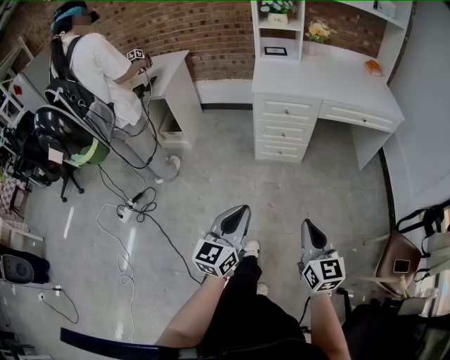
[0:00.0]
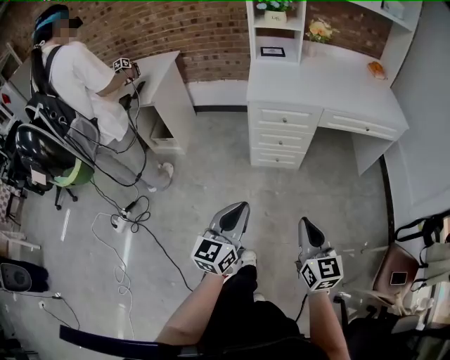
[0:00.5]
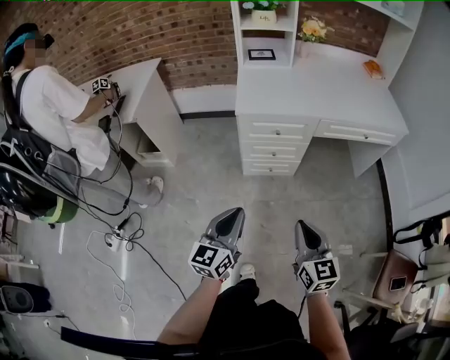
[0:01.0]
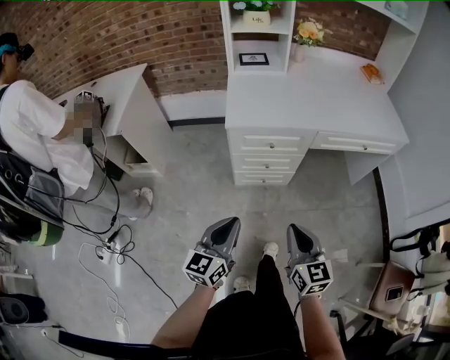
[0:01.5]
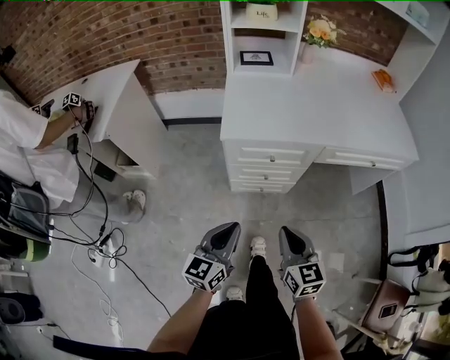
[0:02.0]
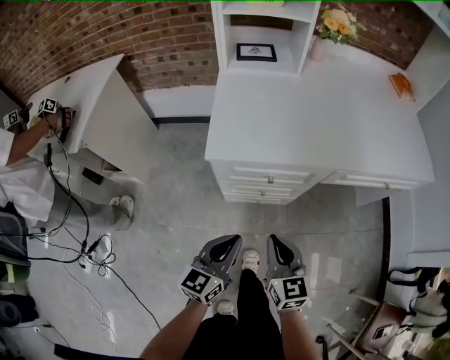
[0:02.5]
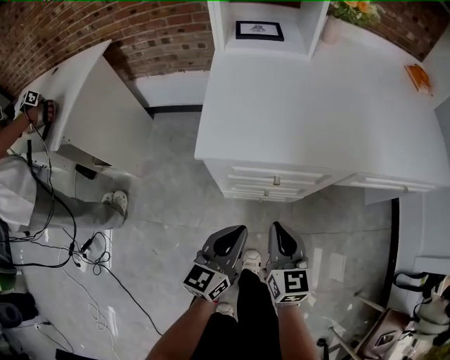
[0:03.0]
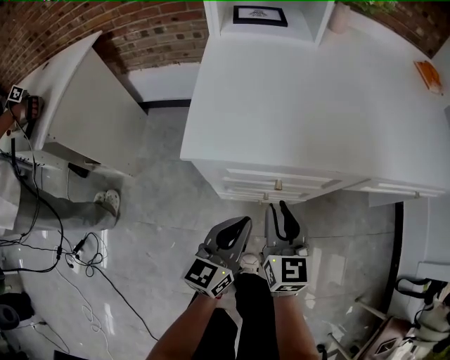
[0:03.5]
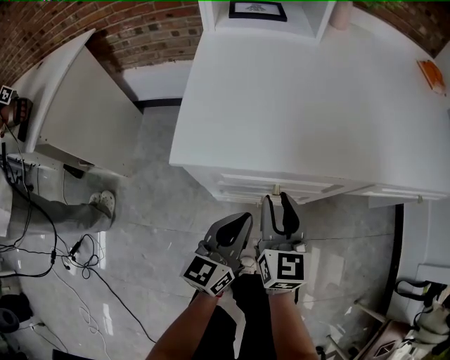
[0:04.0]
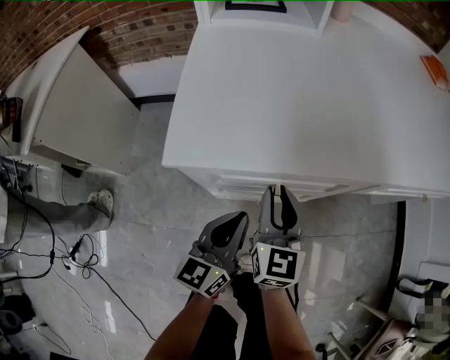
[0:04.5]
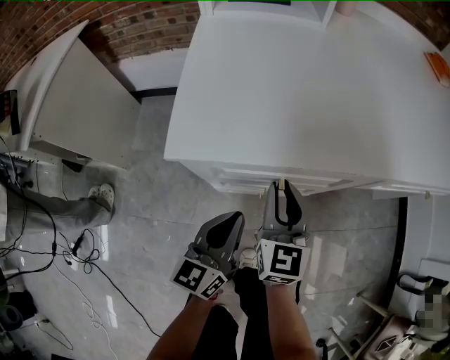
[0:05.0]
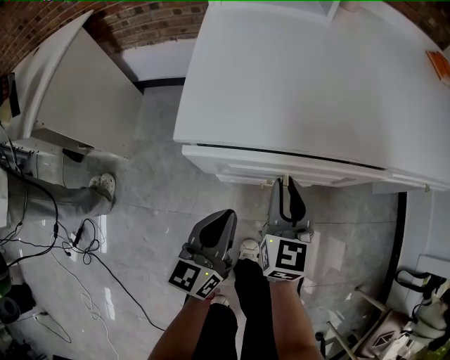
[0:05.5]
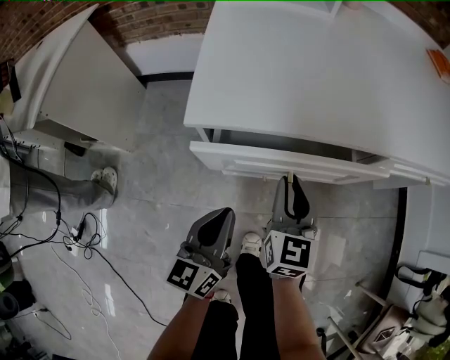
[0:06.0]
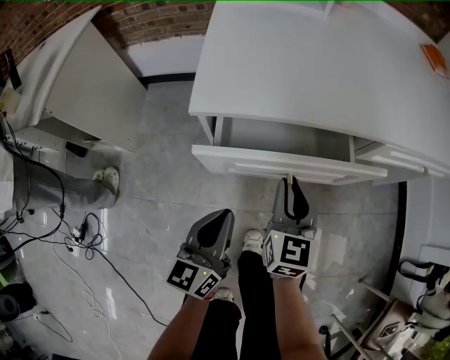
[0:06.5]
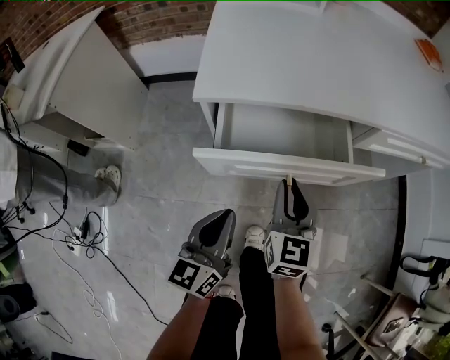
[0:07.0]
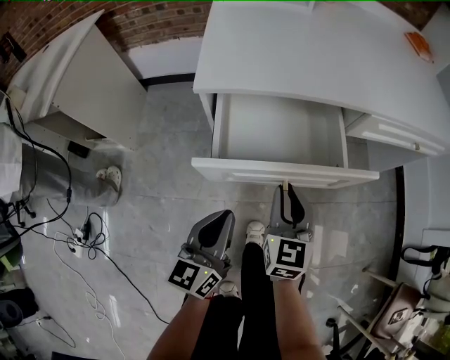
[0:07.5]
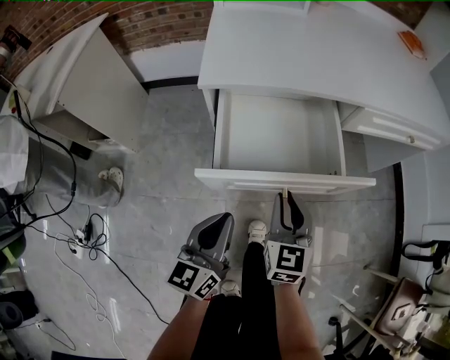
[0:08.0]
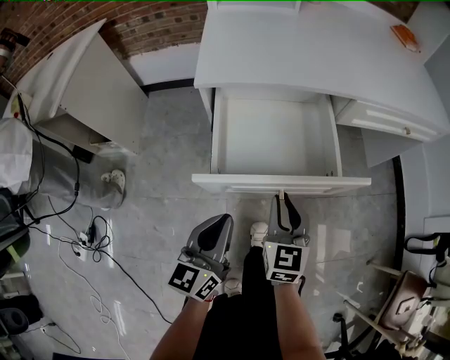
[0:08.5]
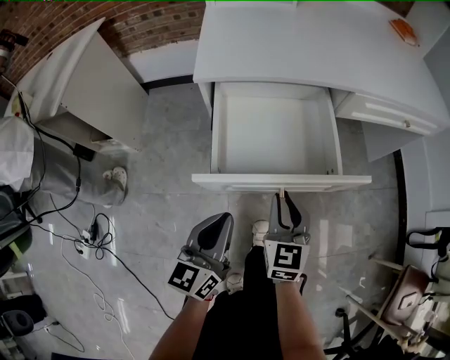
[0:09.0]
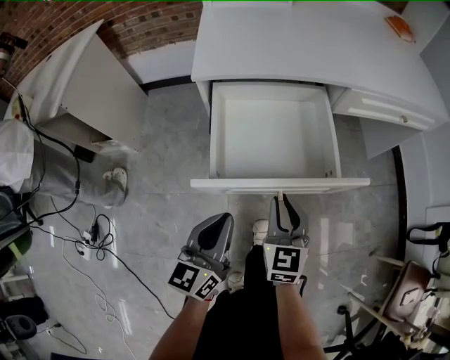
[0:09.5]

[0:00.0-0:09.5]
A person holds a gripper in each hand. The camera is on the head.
0:00.0 to 0:02.0: The two grippers go roughly 40 cm forward.
0:02.0 to 0:04.0: Both grippers travel together forward and downward, some 30 cm. The right gripper opens up.
0:04.0 to 0:05.5: The left gripper moves roughly 5 cm.
0:05.5 to 0:07.5: The two grippers go some 10 cm backward.
0:07.5 to 0:09.5: Both grippers move backward, about 10 cm.

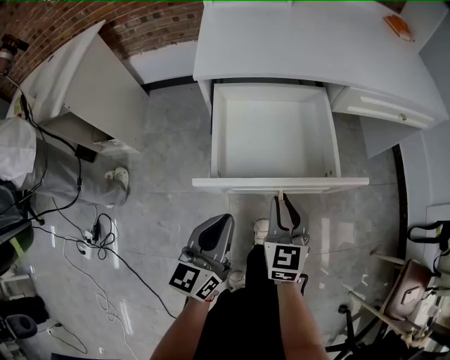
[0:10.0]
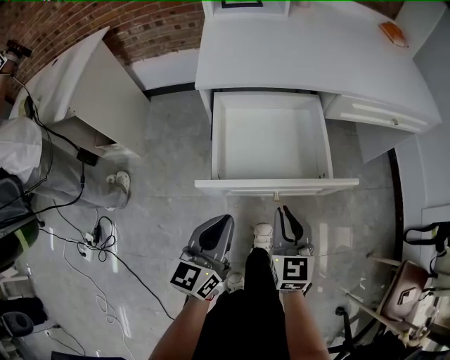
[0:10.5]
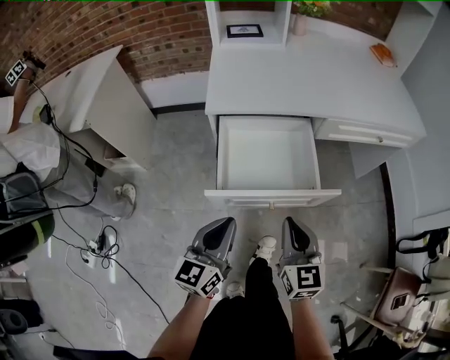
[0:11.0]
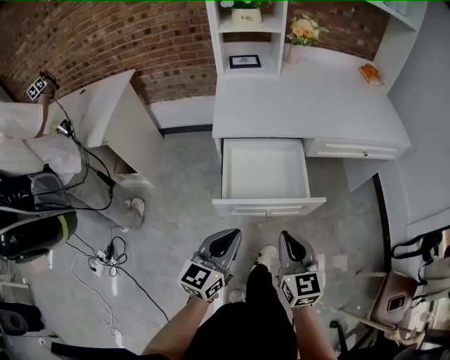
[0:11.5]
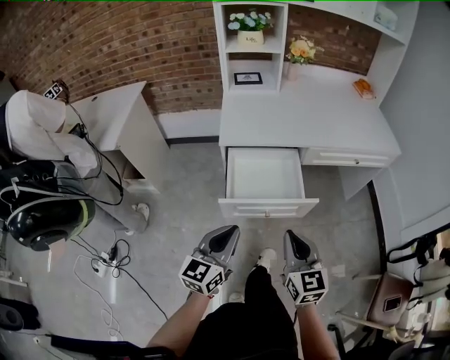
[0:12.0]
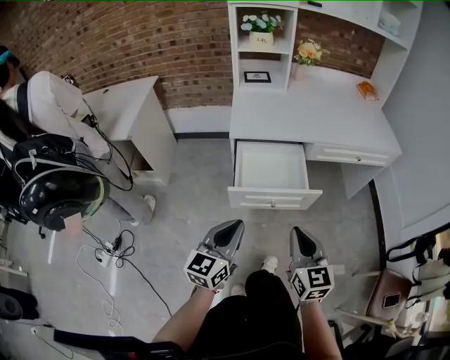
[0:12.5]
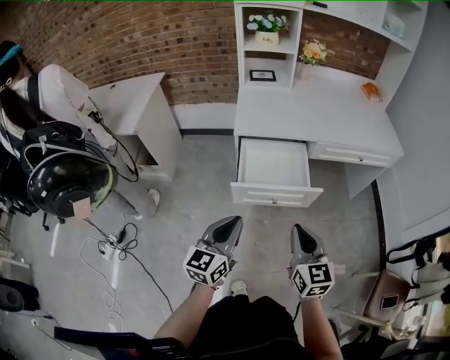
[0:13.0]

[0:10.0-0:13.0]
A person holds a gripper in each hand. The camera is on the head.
0:10.0 to 0:11.5: The right gripper moves upward and backward, some 20 cm; the left gripper goes about 15 cm upward.
0:11.5 to 0:13.0: The grippers both shift upward and backward by approximately 10 cm.

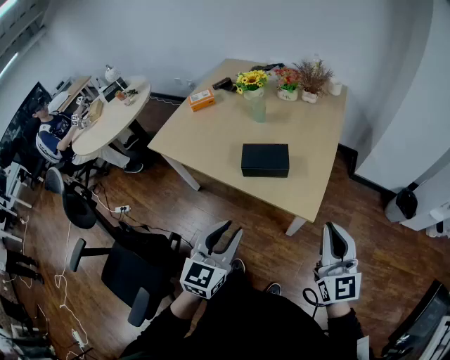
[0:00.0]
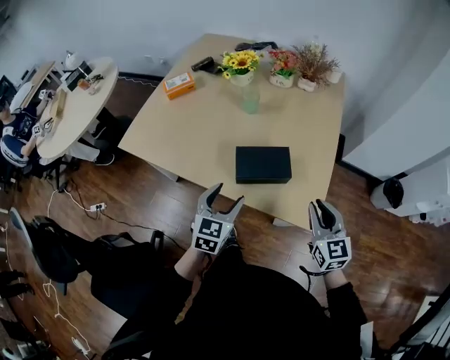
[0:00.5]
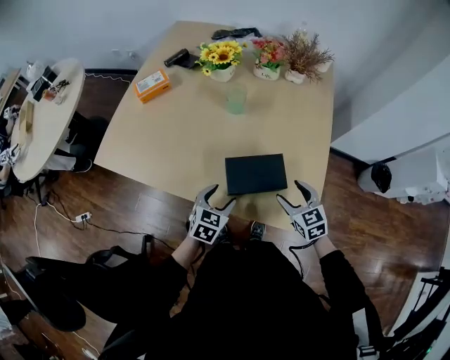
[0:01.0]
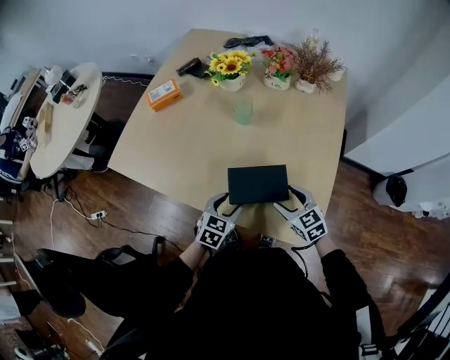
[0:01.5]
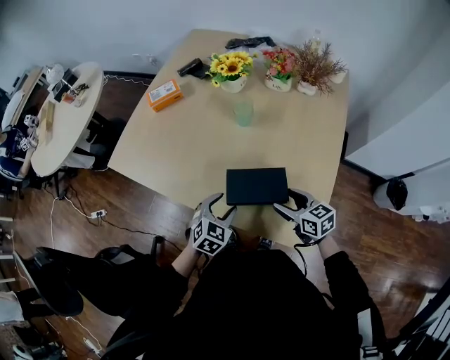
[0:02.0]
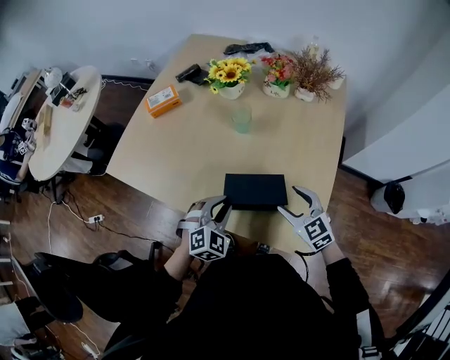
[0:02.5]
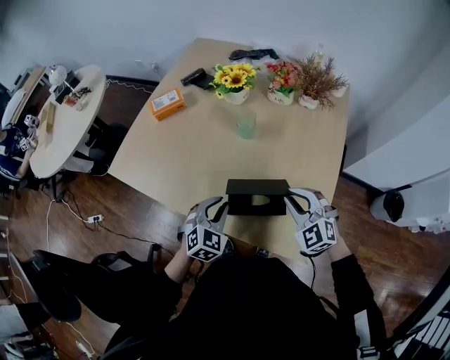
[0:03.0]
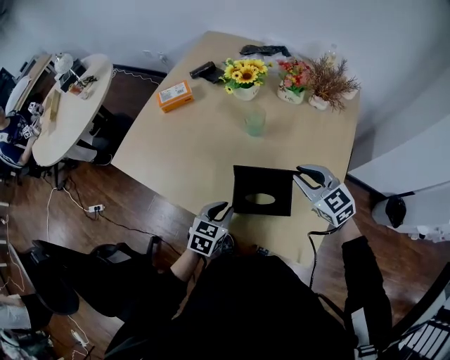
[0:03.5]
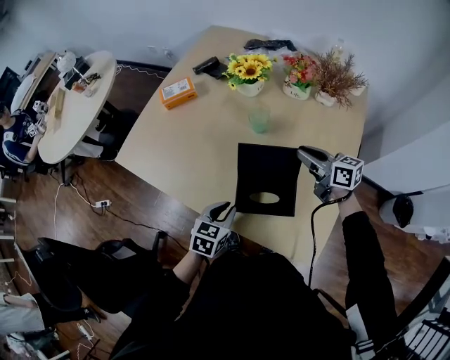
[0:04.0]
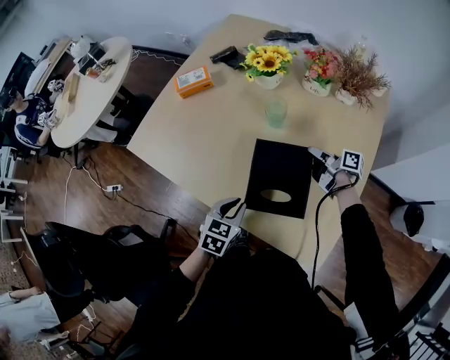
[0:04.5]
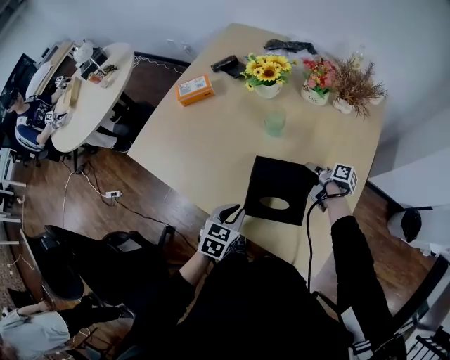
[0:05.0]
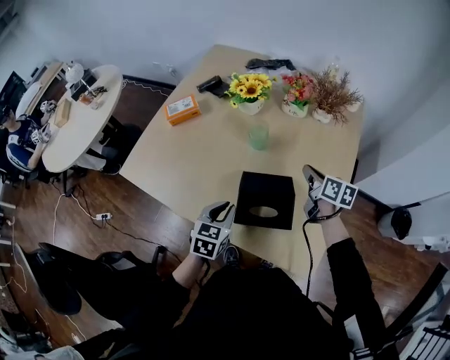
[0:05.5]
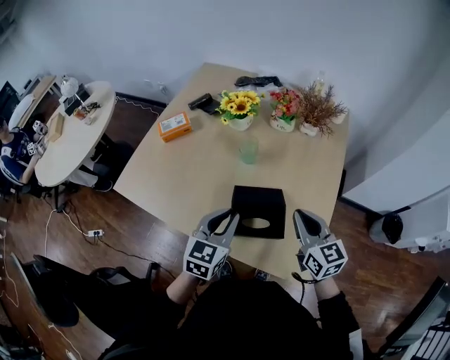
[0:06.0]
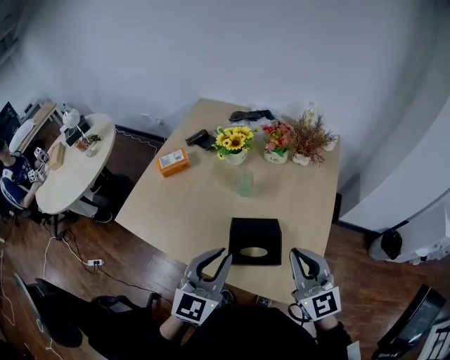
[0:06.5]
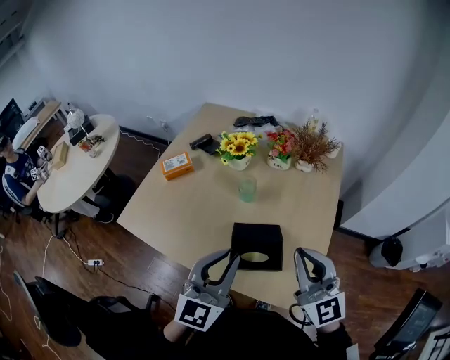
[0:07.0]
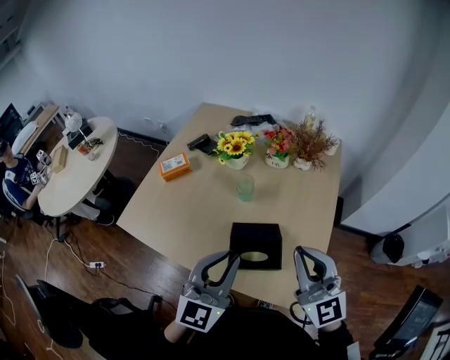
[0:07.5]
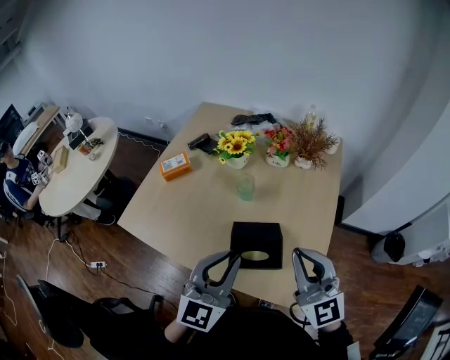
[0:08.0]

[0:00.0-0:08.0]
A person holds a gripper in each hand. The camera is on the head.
0:00.0 to 0:02.0: Both grippers travel together forward and downward, some 40 cm. The left gripper rotates approximately 30 degrees, and opens up. Meanwhile the right gripper tips its fingers downward by some 30 degrees, and opens.
0:02.0 to 0:04.0: The left gripper rotates about 30 degrees, and closes its fingers. The right gripper goes approximately 20 cm forward and upward, and closes.
0:04.0 to 0:06.0: The left gripper heads upward, covering approximately 15 cm, and swivels approximately 20 degrees; the right gripper heads backward, covering roughly 15 cm, reaches roughly 15 cm downward, then returns, and rotates about 30 degrees.
0:06.0 to 0:08.0: The grippers both shift upward by roughly 15 cm. The left gripper changes its angle by some 30 degrees. The right gripper changes its angle by some 30 degrees.

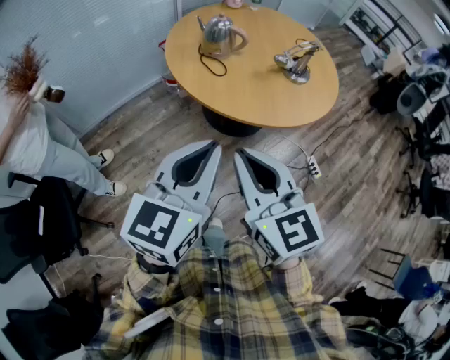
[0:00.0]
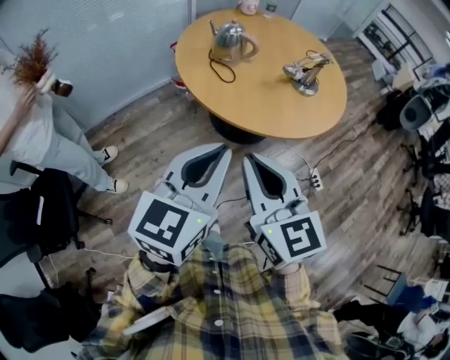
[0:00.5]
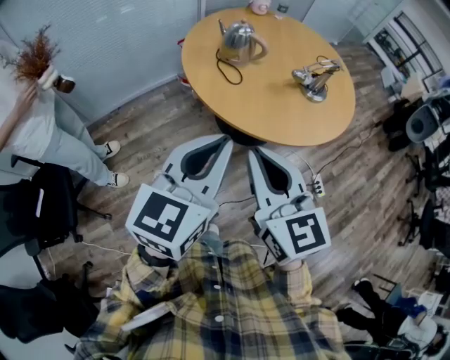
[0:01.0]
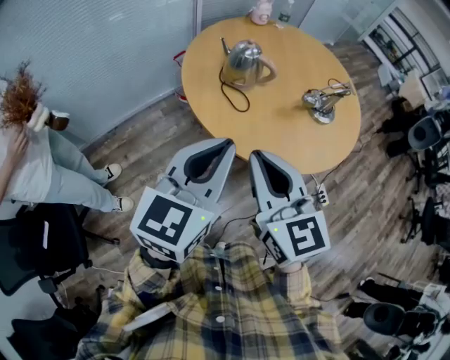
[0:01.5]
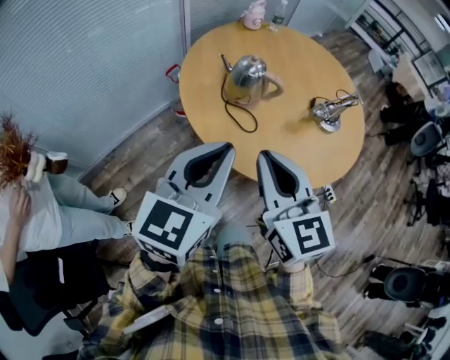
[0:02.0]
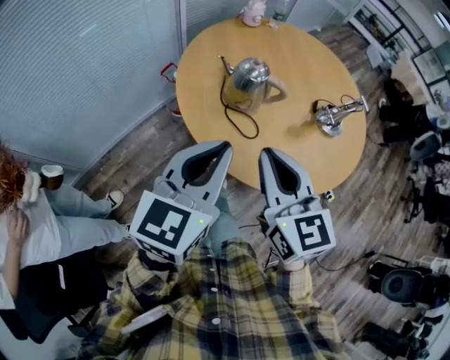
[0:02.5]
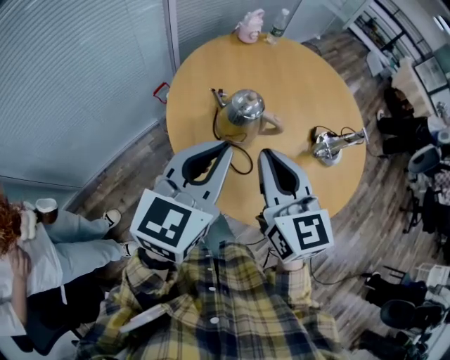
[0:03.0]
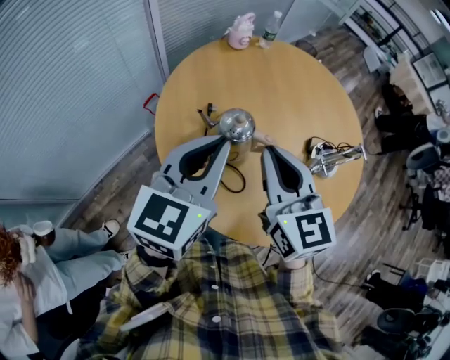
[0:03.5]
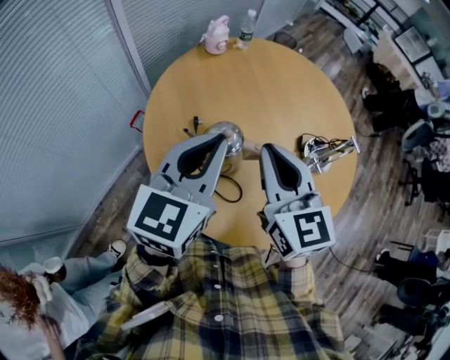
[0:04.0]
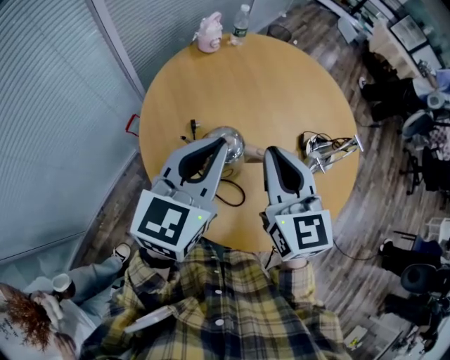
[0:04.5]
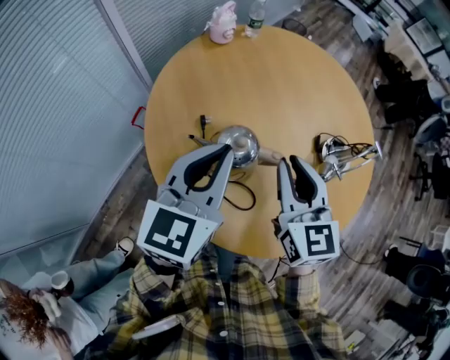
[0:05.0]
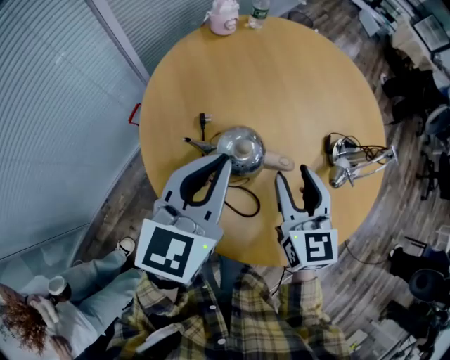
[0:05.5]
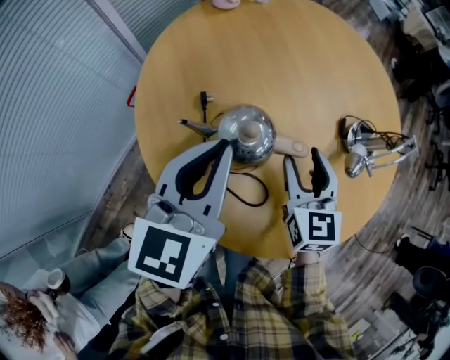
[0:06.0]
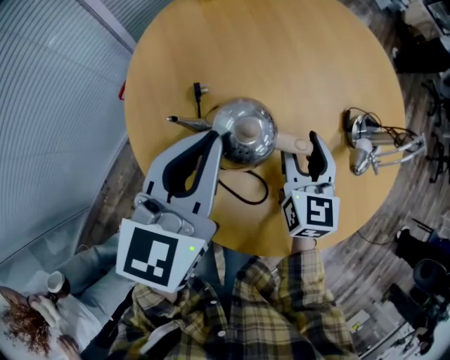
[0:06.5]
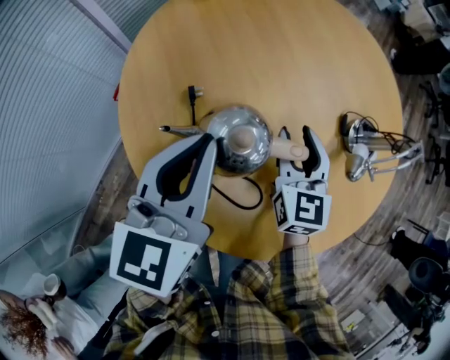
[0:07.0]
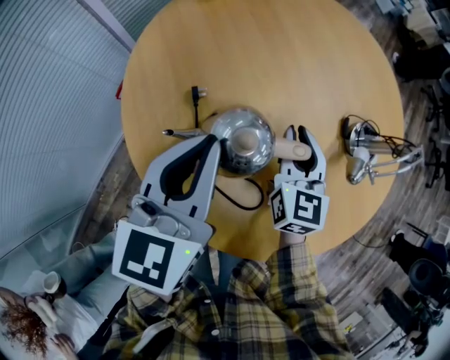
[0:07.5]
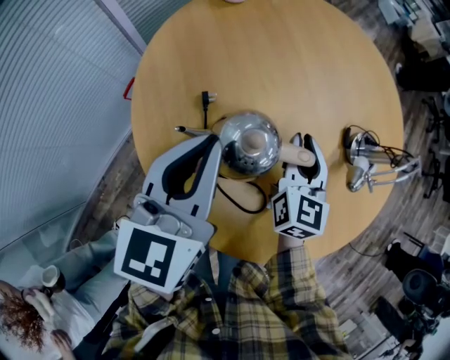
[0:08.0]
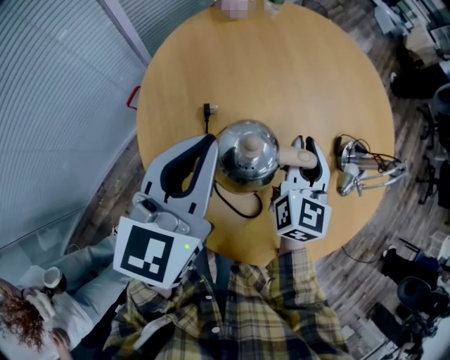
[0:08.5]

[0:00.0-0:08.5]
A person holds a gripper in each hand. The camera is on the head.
0:00.0 to 0:02.0: The left gripper is displaced forward and to the left by roughly 30 cm, while the right gripper shifts roughly 25 cm forward.
0:02.0 to 0:04.0: The grippers both shift forward by some 30 cm.
0:04.0 to 0:06.5: The right gripper goes approximately 25 cm downward, and opens its fingers. The left gripper travels downward by roughly 15 cm.
0:06.5 to 0:08.5: The right gripper changes place by some 5 cm, and closes up.
